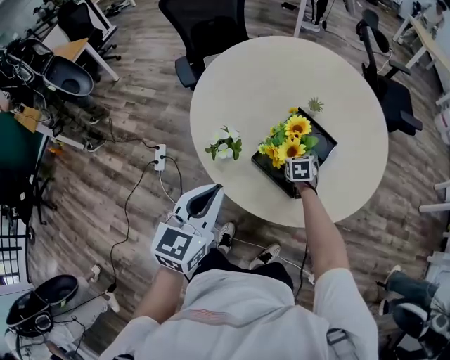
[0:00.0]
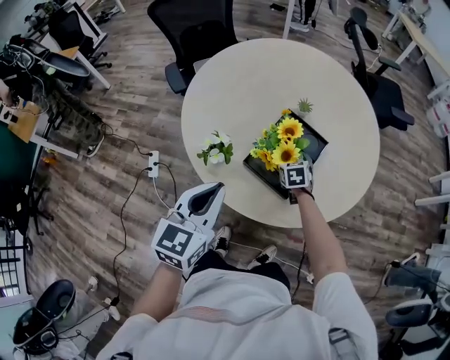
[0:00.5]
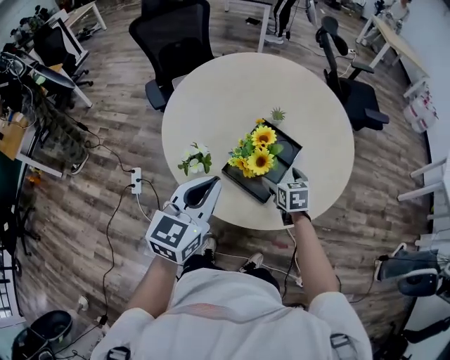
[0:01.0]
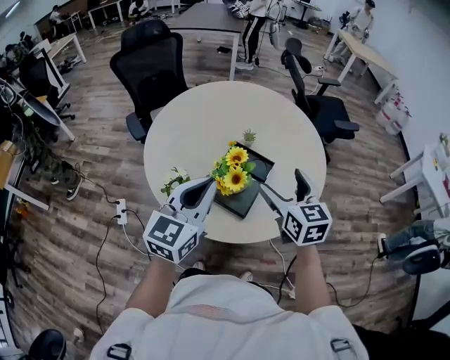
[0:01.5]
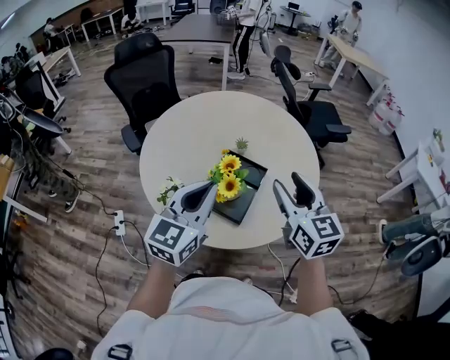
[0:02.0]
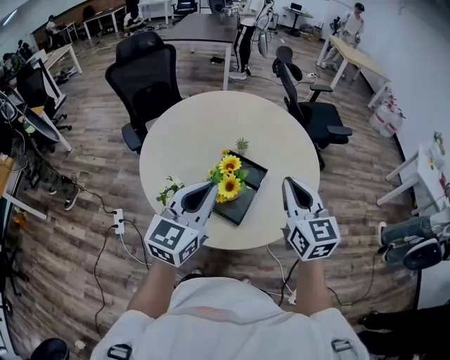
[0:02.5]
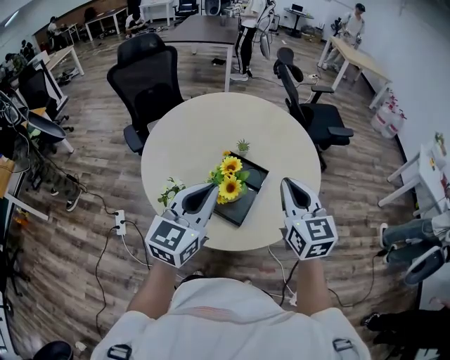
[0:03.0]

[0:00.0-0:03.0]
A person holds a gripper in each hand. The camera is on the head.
0:00.0 to 0:01.5: The left gripper heads upward and to the right, covering roughly 15 cm, and swivels roughly 20 degrees. Meanwhile the right gripper heads upward, covering approximately 35 cm, and points its fingers roughly 30 degrees further upward.
0:01.5 to 0:03.0: The right gripper heads upward, covering some 5 cm, and closes its fingers.

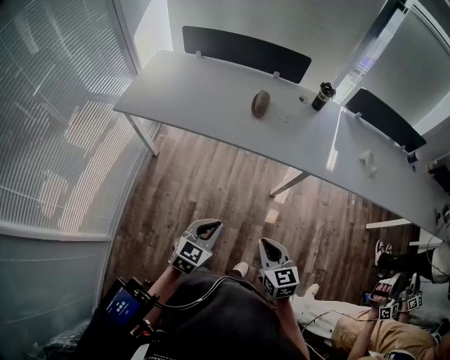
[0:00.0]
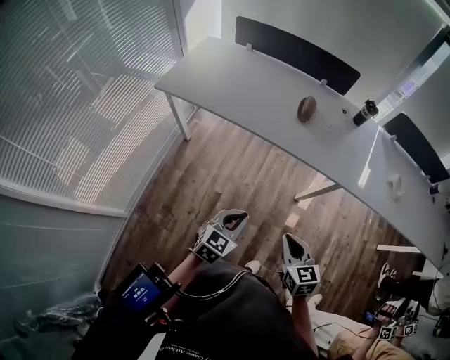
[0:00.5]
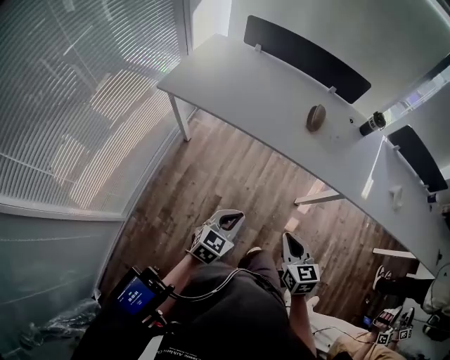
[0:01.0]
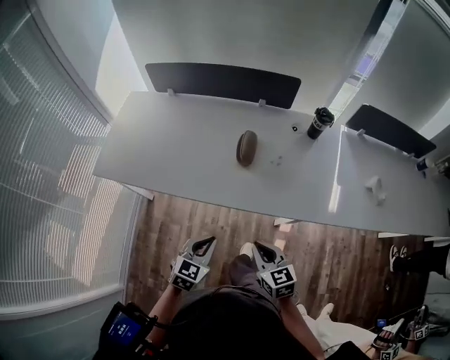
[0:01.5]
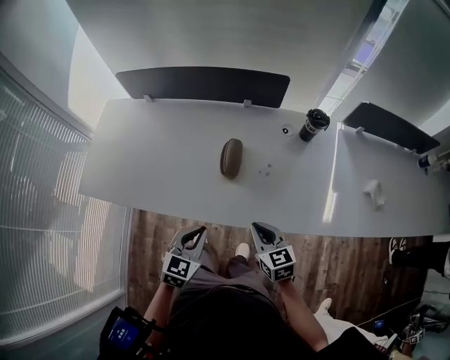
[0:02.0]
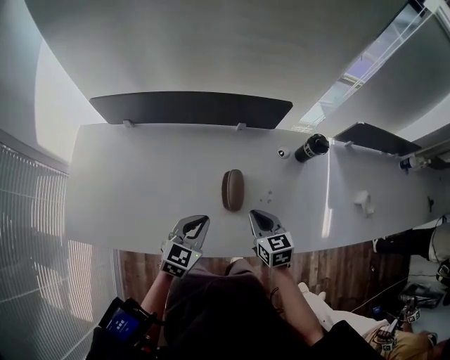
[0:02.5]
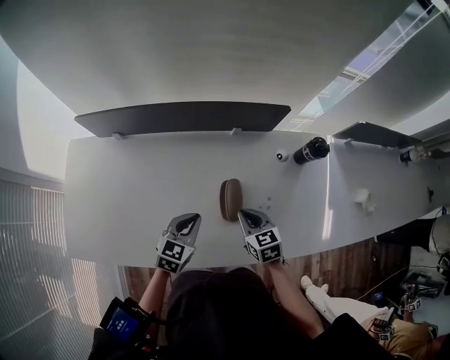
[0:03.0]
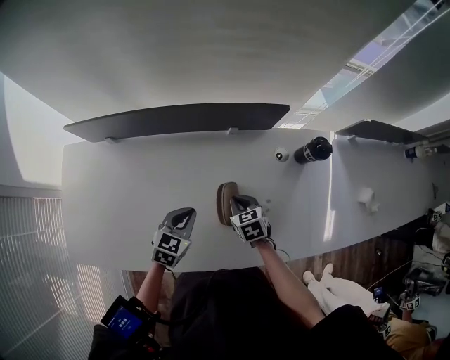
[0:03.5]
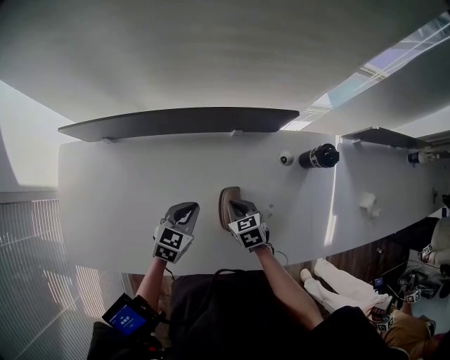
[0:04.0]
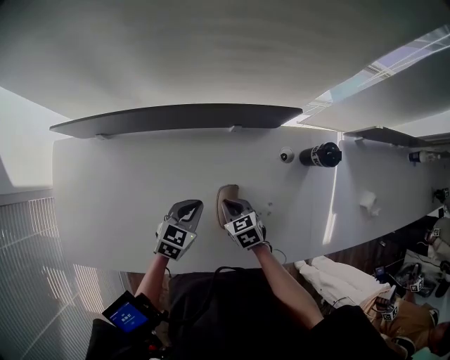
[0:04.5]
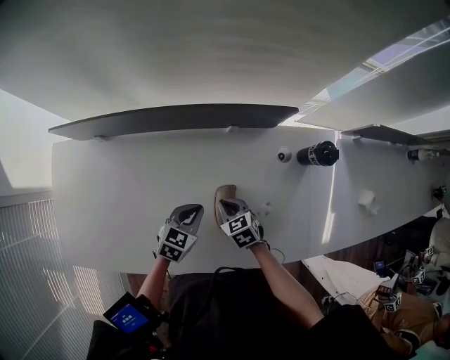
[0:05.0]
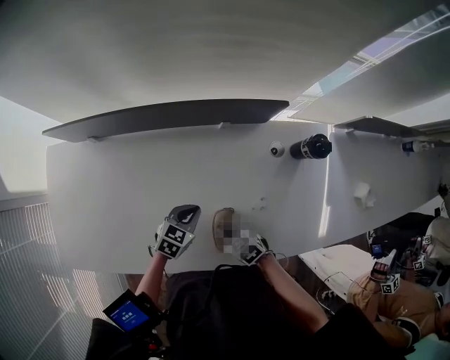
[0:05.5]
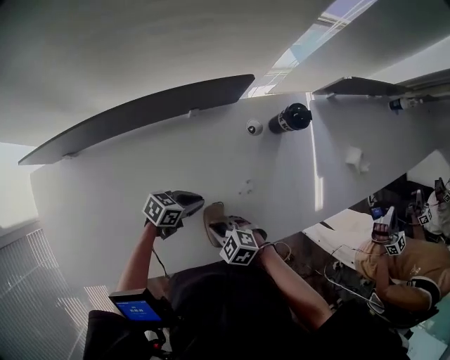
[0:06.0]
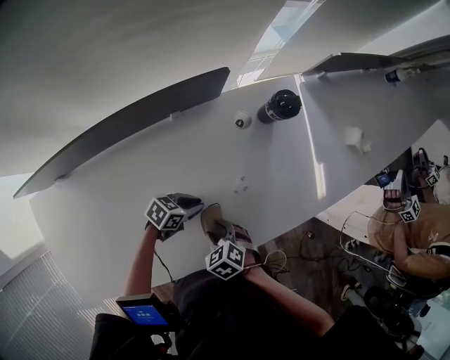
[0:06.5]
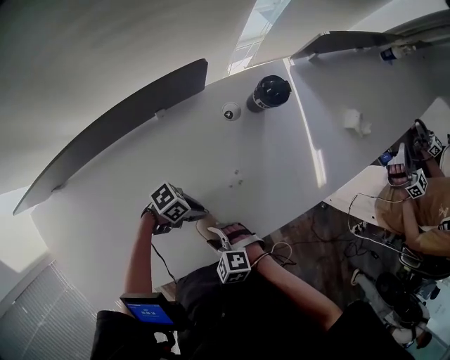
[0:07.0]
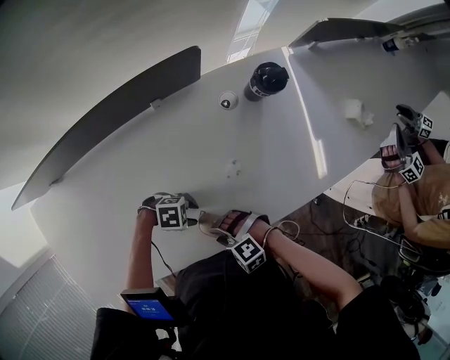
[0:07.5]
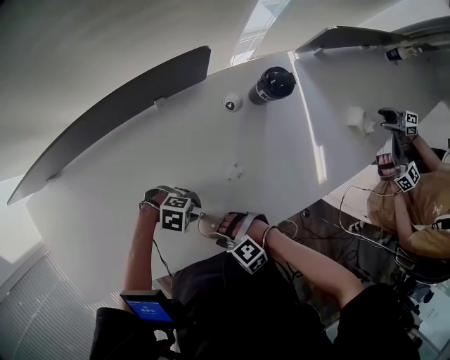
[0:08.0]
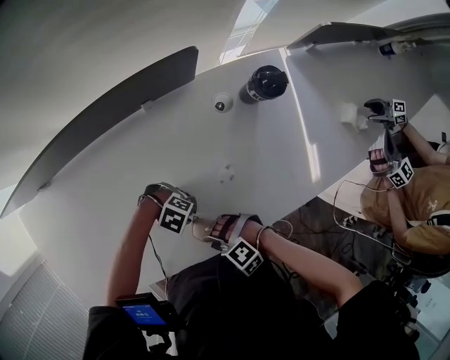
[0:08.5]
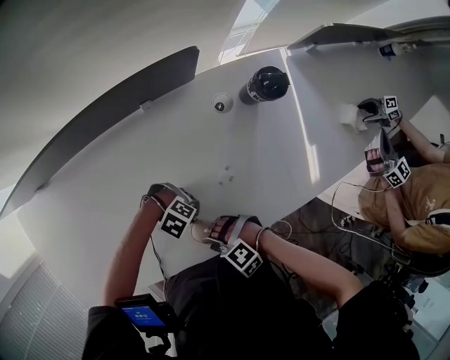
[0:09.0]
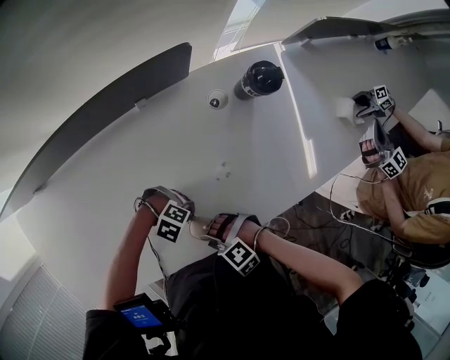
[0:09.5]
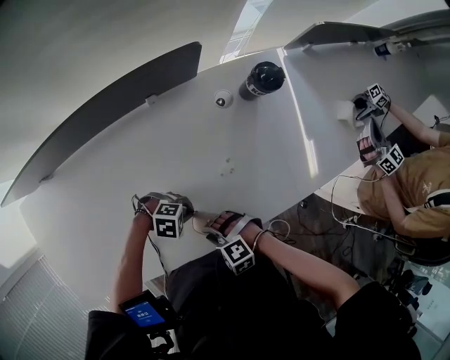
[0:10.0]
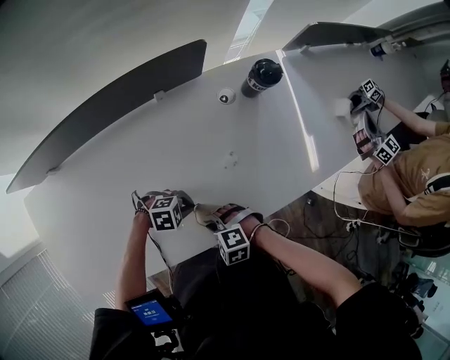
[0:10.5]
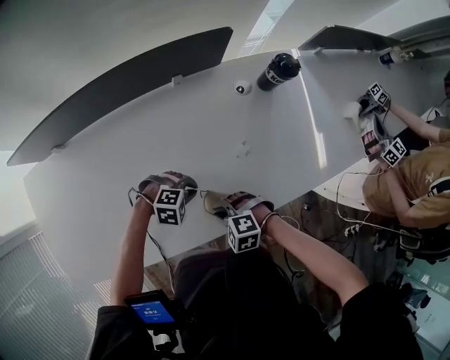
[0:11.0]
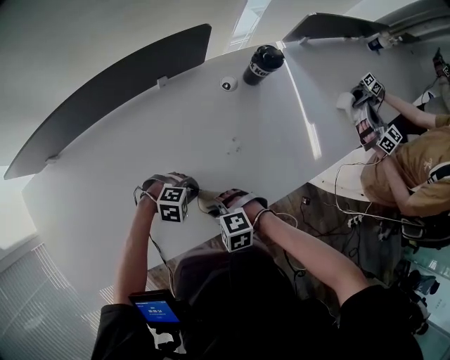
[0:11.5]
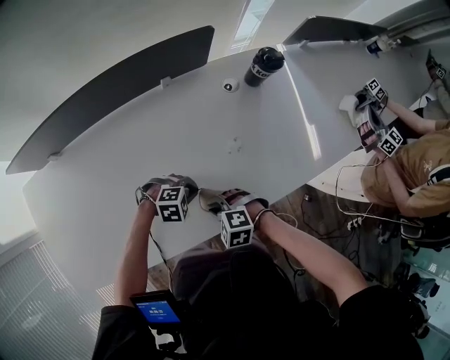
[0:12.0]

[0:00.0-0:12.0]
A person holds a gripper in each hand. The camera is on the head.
0:00.0 to 0:02.0: The grippers both shift forward by roughly 40 cm.
0:02.0 to 0:04.0: The left gripper is displaced forward by about 30 cm, while the right gripper is displaced forward, to the left and downward by roughly 35 cm, and changes its angle by some 20 degrees.
0:04.0 to 0:06.0: The left gripper moves about 15 cm, and changes its angle by some 50 degrees. Meanwhile the right gripper ends up roughly 15 cm from where it was, and turns by some 30 degrees.
0:06.0 to 0:08.0: The right gripper changes place by roughly 10 cm, twists some 40 degrees counterclockwise, seen from behind, and opens; the left gripper changes place by some 10 cm, and swivels roughly 80 degrees.
0:08.0 to 0:10.0: The left gripper closes its fingers.

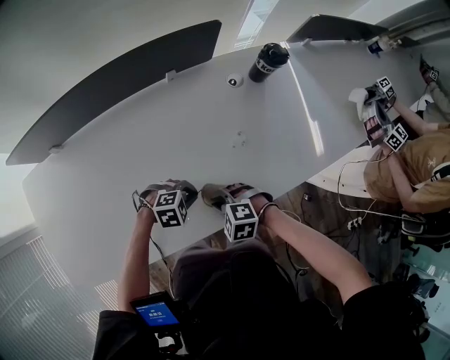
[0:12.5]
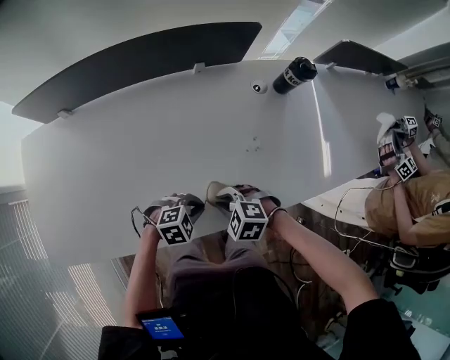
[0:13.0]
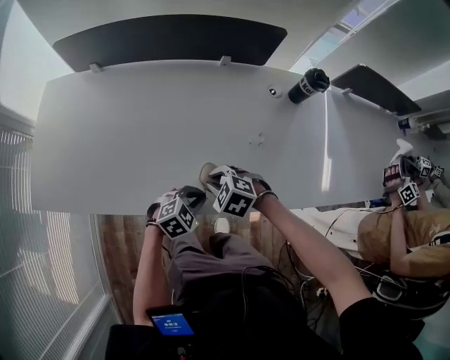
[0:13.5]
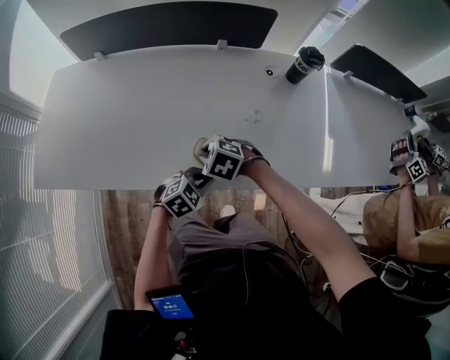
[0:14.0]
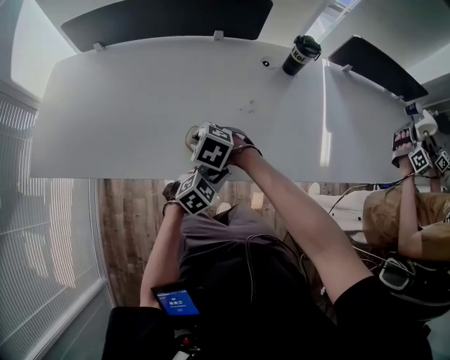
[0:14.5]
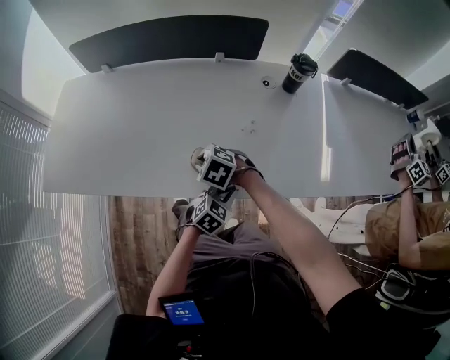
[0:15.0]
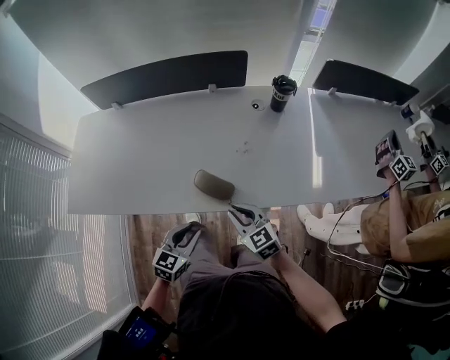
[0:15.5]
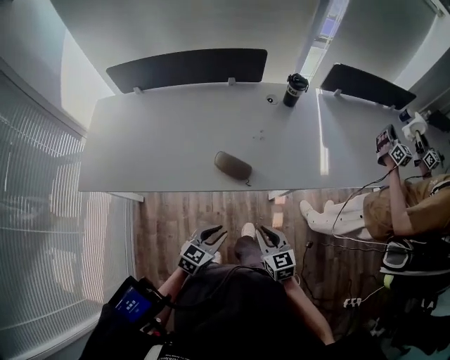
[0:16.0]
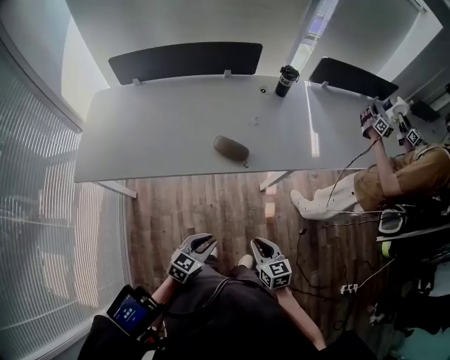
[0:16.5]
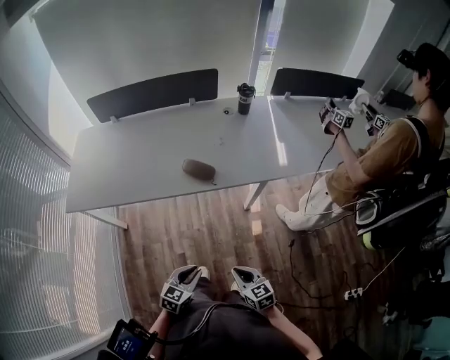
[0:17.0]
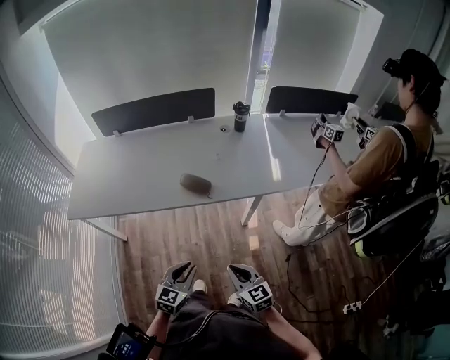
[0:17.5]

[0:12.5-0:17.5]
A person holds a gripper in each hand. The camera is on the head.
0:12.5 to 0:15.0: The left gripper ends up some 20 cm from where it was, and changes its angle by approximately 60 degrees.
0:15.0 to 0:17.5: The left gripper is displaced backward and upward by about 40 cm, and swivels roughly 20 degrees; the right gripper goes some 50 cm backward and to the right, and tips its fingers upward by some 40 degrees.

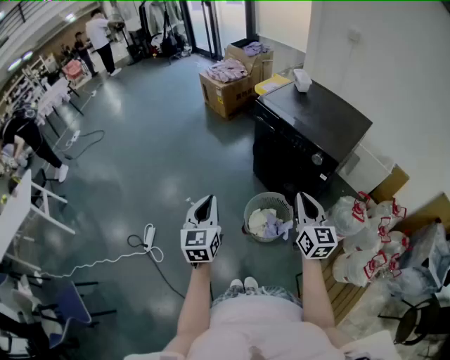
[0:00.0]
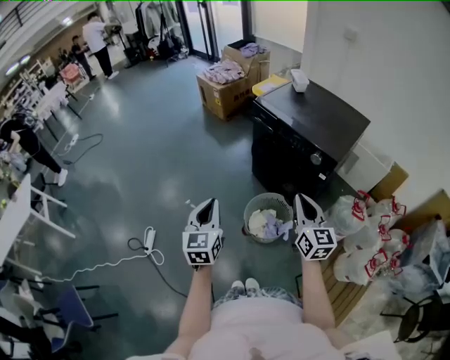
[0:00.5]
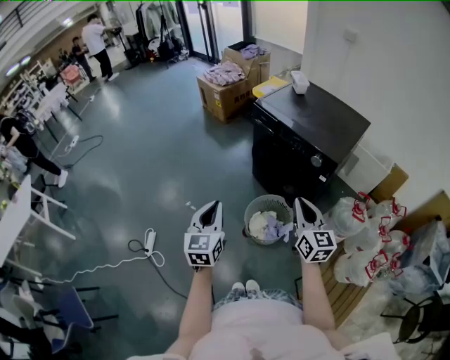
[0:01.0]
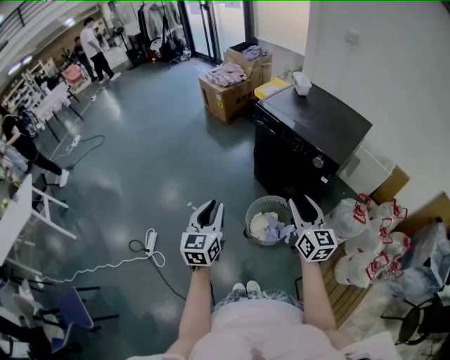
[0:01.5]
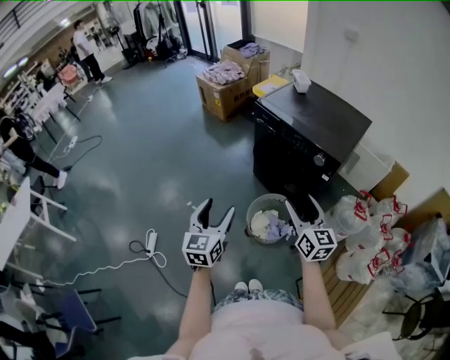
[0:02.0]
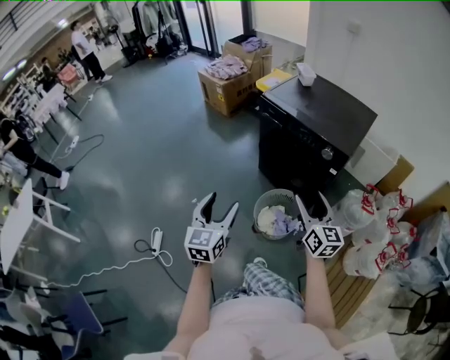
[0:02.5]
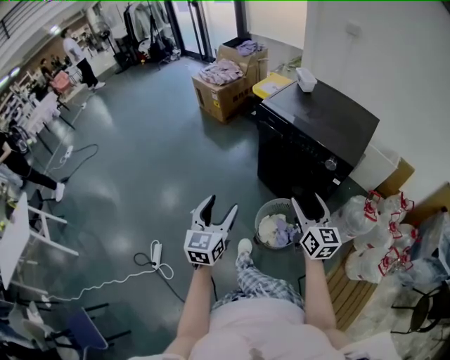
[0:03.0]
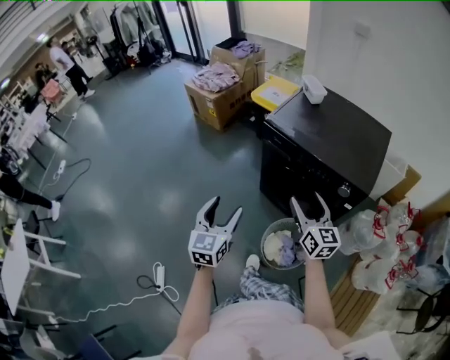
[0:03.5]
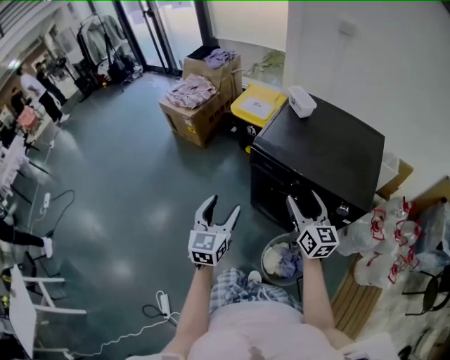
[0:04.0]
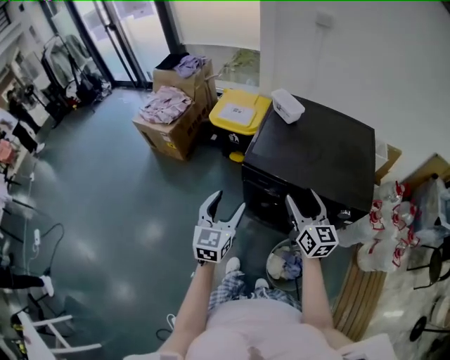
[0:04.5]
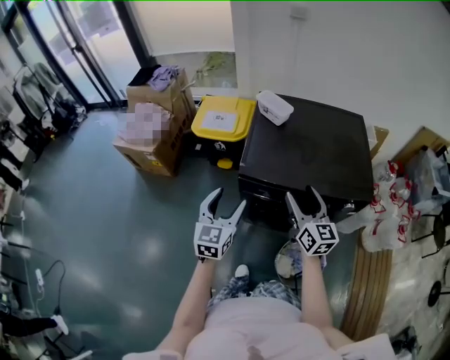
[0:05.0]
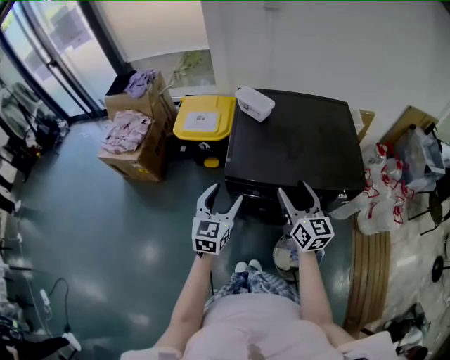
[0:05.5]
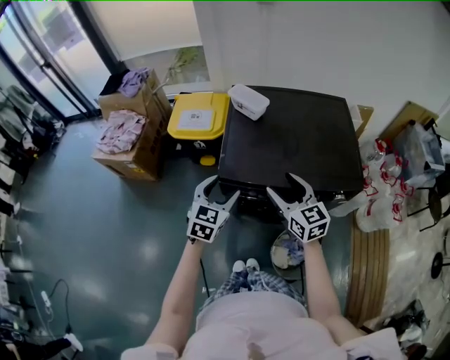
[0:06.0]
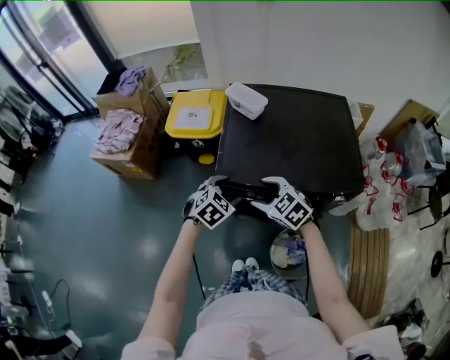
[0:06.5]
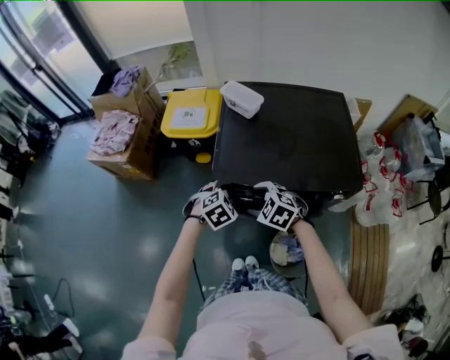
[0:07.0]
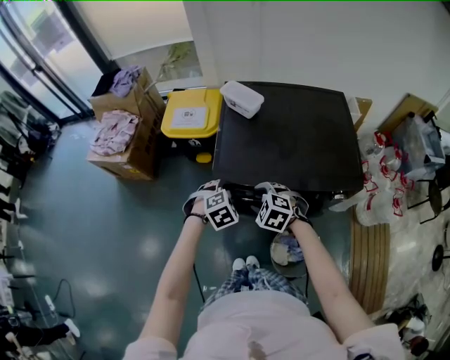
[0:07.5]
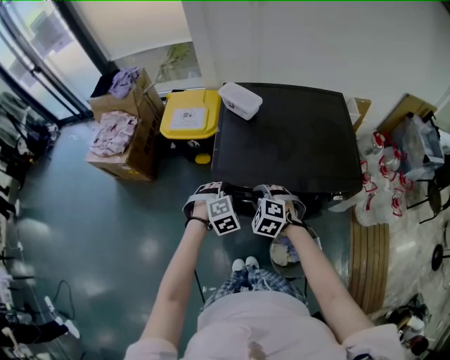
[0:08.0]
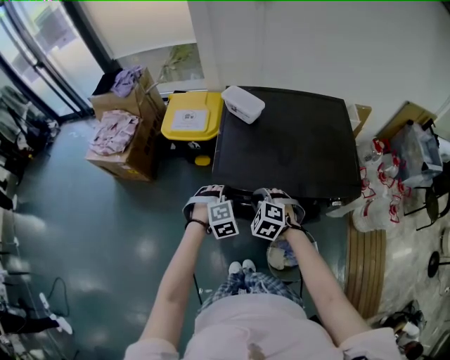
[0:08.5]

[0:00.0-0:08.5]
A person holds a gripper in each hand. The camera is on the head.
0:00.0 to 0:02.0: The right gripper opens up; the left gripper opens its fingers.
0:02.0 to 0:04.0: Both grippers travel together forward, about 40 cm.
0:04.0 to 0:06.5: The right gripper shifts by approximately 20 cm, and points its fingers about 40 degrees further downward. The left gripper shifts by about 30 cm, and tilts its fingers some 40 degrees downward.
0:06.5 to 0:08.5: The left gripper rotates approximately 30 degrees, and closes, while the right gripper moves downward, about 5 cm, swivels some 30 degrees, and closes.
